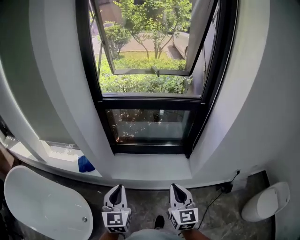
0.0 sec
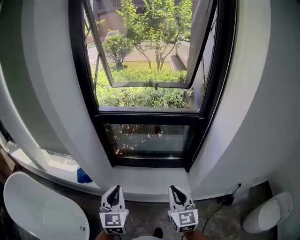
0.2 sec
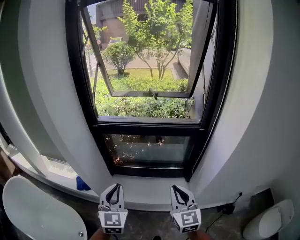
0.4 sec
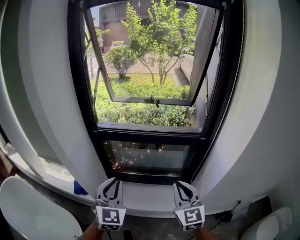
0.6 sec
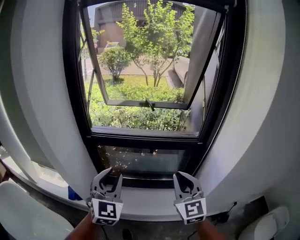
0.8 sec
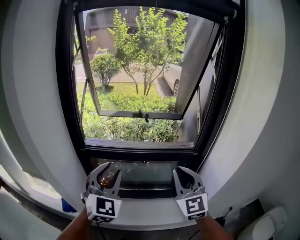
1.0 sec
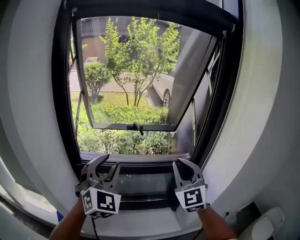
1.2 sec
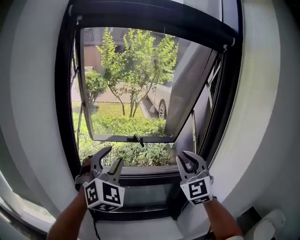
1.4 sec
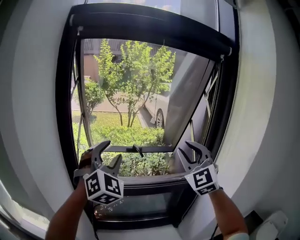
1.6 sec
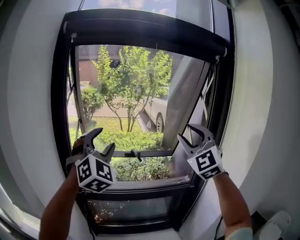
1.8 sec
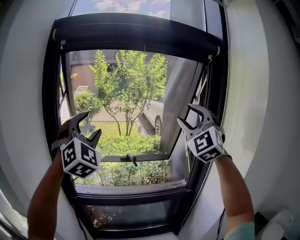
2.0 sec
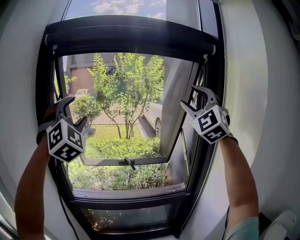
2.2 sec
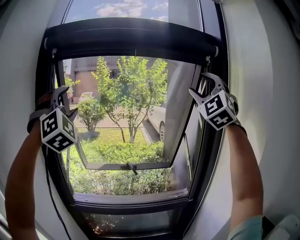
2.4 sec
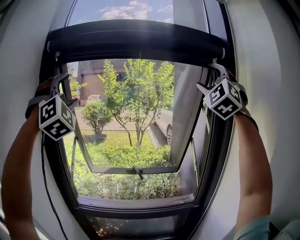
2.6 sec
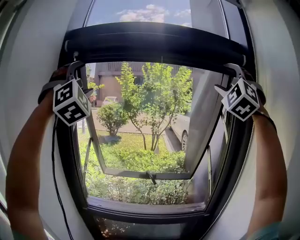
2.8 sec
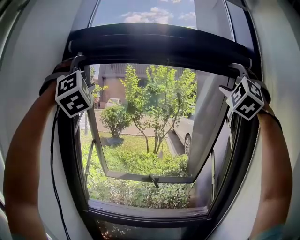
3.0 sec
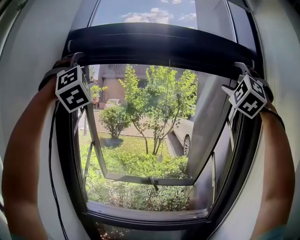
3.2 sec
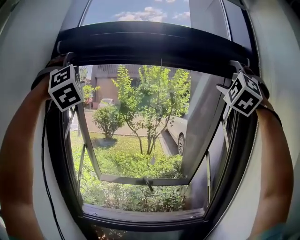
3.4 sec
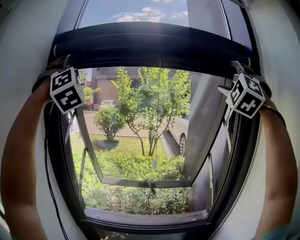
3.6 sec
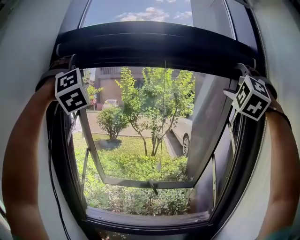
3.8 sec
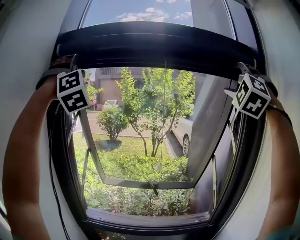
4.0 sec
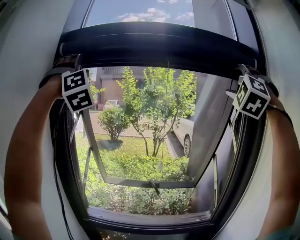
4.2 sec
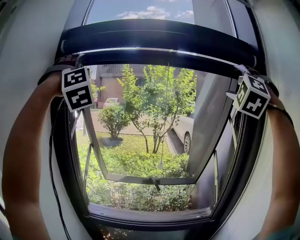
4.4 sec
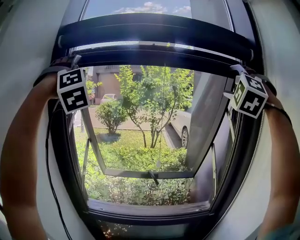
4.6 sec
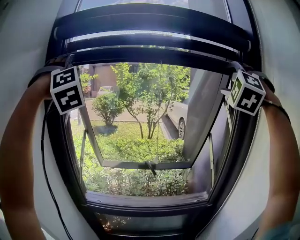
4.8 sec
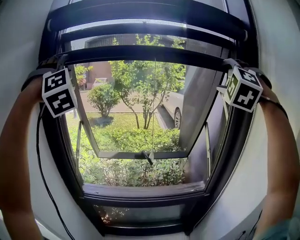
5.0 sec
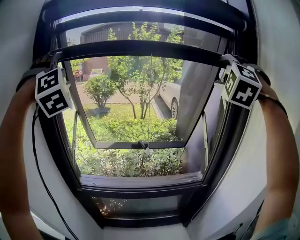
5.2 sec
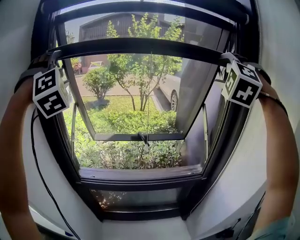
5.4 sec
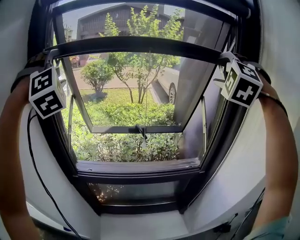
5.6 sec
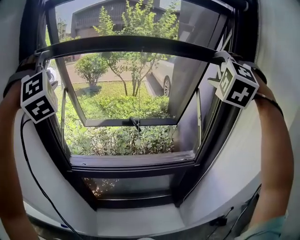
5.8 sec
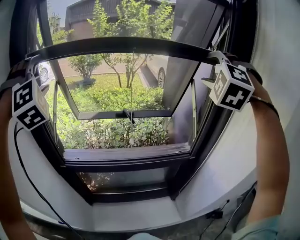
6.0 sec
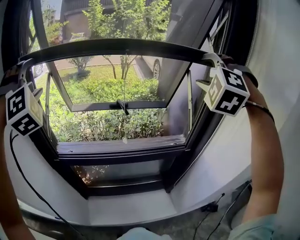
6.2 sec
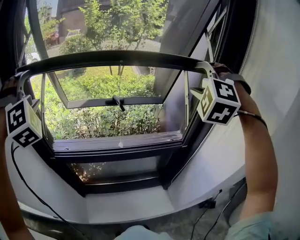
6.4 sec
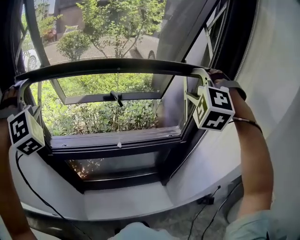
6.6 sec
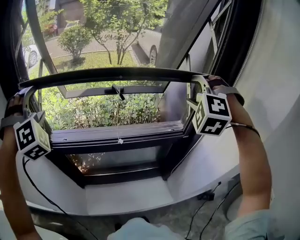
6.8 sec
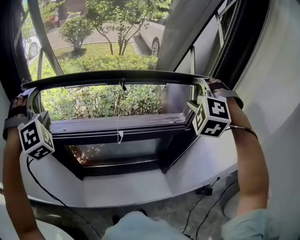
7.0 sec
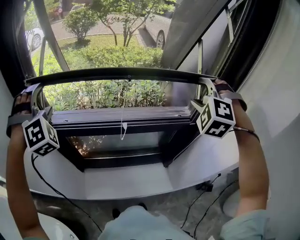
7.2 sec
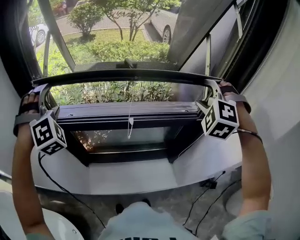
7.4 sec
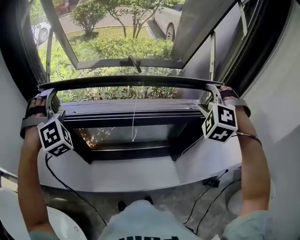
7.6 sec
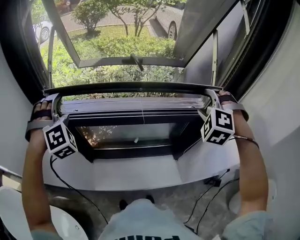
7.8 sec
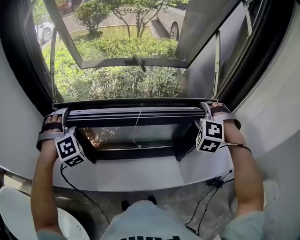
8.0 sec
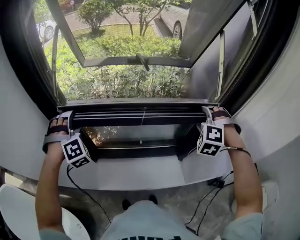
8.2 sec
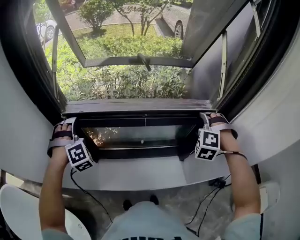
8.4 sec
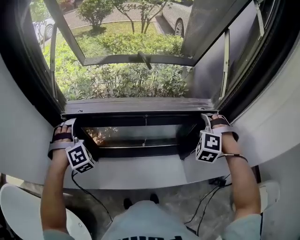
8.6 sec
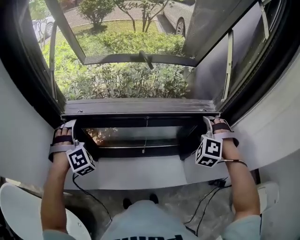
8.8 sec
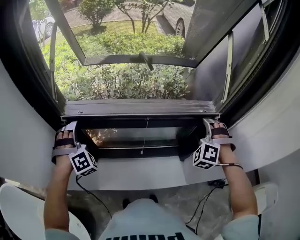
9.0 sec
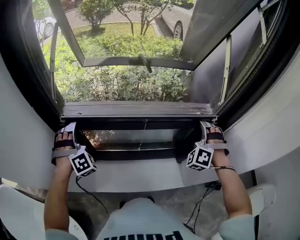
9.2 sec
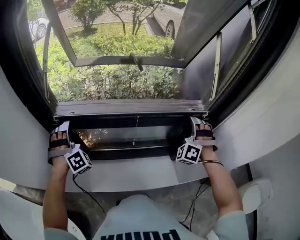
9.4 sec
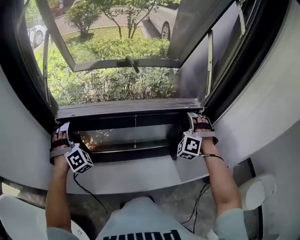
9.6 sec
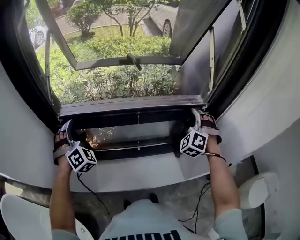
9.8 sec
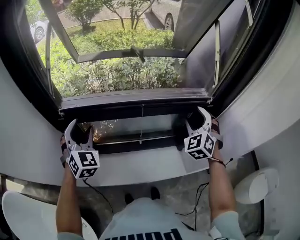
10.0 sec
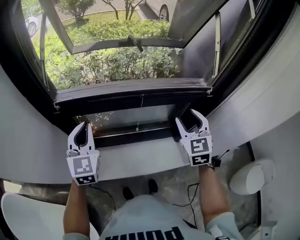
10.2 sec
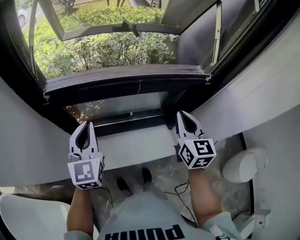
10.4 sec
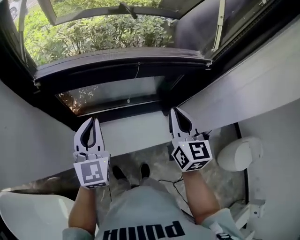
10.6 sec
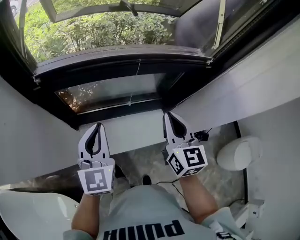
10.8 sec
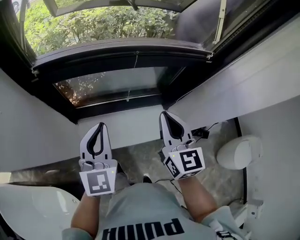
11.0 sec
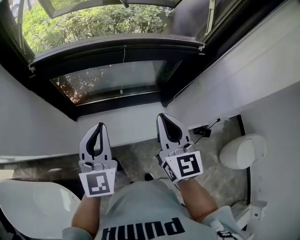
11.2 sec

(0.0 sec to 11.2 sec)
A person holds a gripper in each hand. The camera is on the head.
0.0 sec - 1.6 sec: The two grippers go some 50 cm forward and upward. The left gripper rotates around the line of its fingers by about 50 degrees, clockwise from behind, and opens its fingers. The right gripper rolls counterclockwise, seen from behind, by roughly 50 degrees.
1.6 sec - 3.2 sec: Both grippers move upward, approximately 35 cm. The right gripper swivels about 40 degrees, and opens. The left gripper turns by about 40 degrees, and opens.
3.2 sec - 4.8 sec: Both grippers travel together downward, roughly 10 cm.
4.8 sec - 6.4 sec: The two grippers go roughly 25 cm downward. The right gripper changes its angle by some 20 degrees.
6.4 sec - 8.0 sec: Both grippers travel together downward, some 30 cm. The right gripper swivels about 20 degrees; the left gripper changes its angle by approximately 20 degrees.
8.0 sec - 9.6 sec: Both grippers move downward, about 5 cm.
9.6 sec - 11.2 sec: The right gripper travels backward and to the left by approximately 25 cm, rolls clockwise, seen from behind, by approximately 80 degrees, and closes up. Meanwhile the left gripper heads backward and to the right, covering approximately 30 cm, twists some 70 degrees counterclockwise, seen from behind, and closes its fingers.

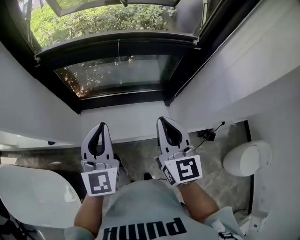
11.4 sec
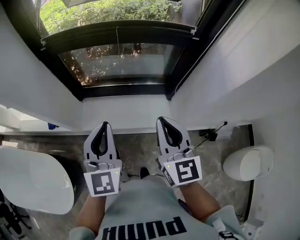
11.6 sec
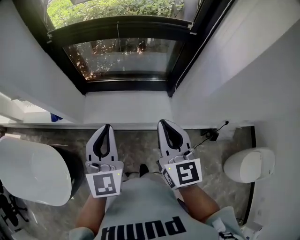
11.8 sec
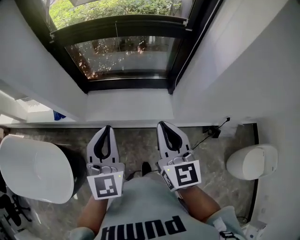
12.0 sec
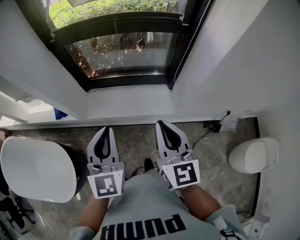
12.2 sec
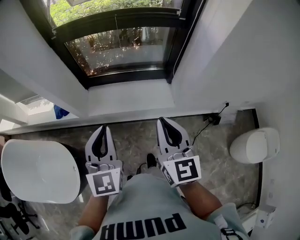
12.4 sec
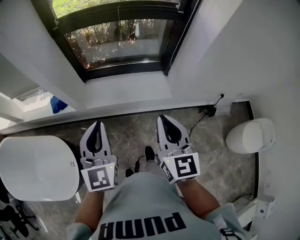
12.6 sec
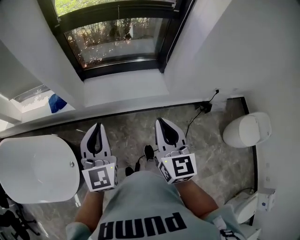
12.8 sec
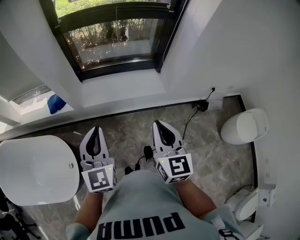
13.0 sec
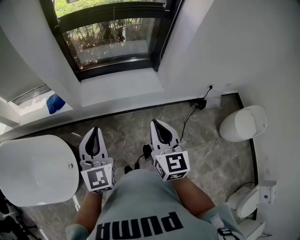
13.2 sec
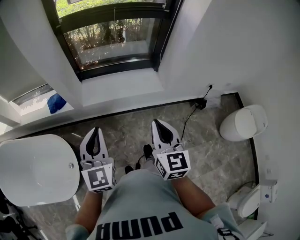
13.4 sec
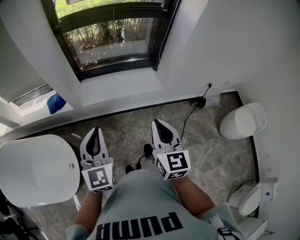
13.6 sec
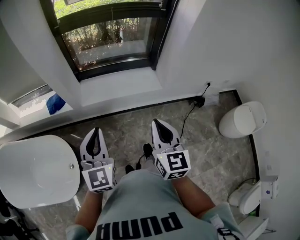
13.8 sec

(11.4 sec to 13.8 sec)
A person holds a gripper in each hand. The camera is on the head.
11.4 sec - 12.6 sec: The two grippers go about 30 cm backward.
12.6 sec - 13.8 sec: Both grippers move backward, about 15 cm.

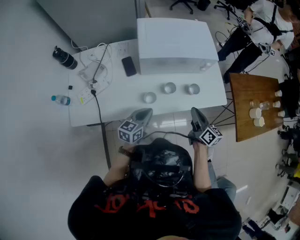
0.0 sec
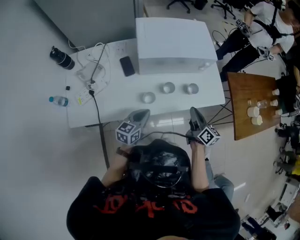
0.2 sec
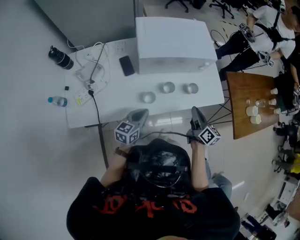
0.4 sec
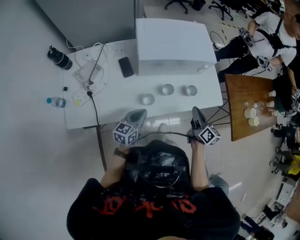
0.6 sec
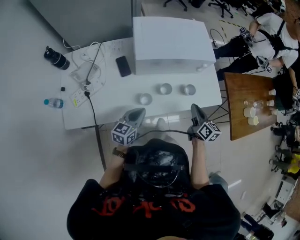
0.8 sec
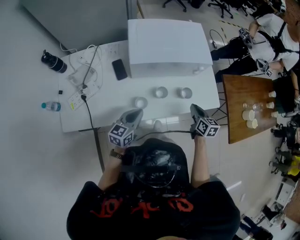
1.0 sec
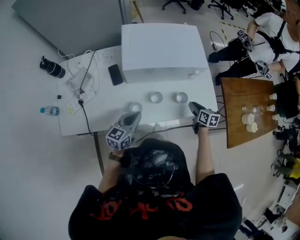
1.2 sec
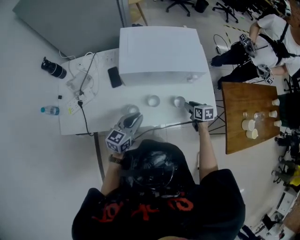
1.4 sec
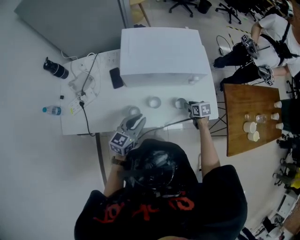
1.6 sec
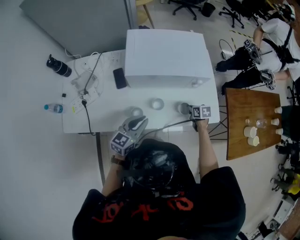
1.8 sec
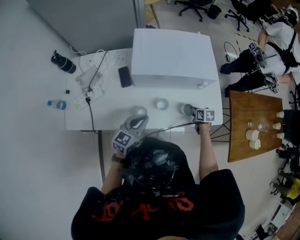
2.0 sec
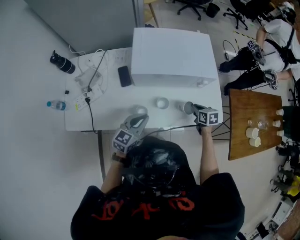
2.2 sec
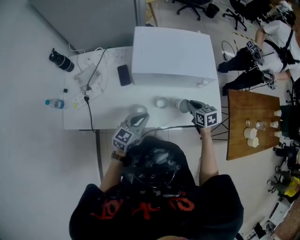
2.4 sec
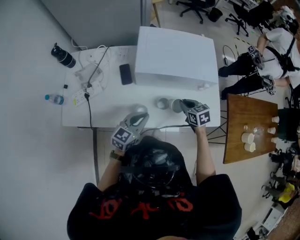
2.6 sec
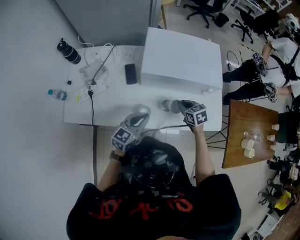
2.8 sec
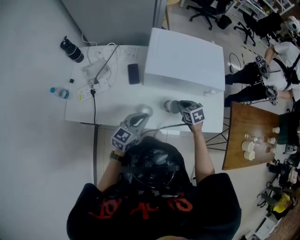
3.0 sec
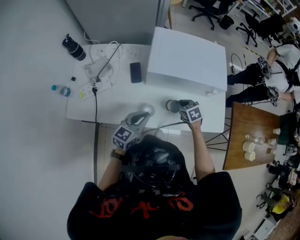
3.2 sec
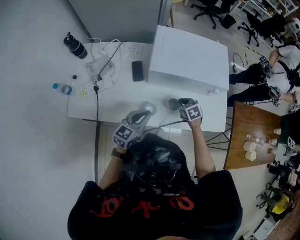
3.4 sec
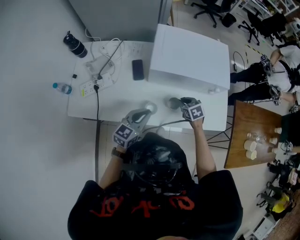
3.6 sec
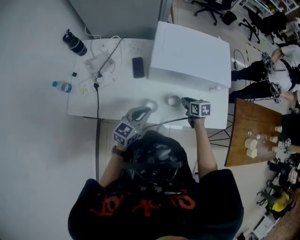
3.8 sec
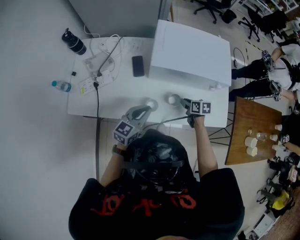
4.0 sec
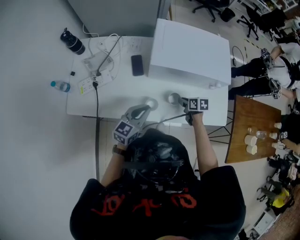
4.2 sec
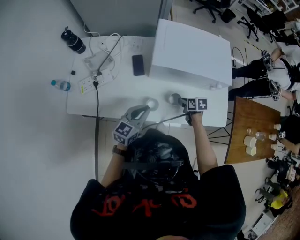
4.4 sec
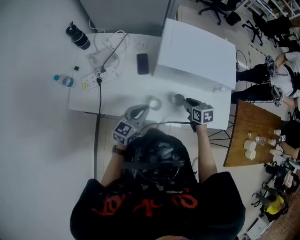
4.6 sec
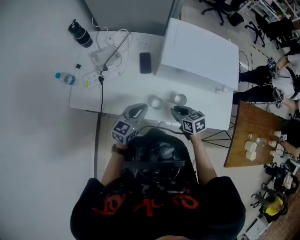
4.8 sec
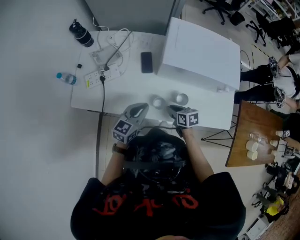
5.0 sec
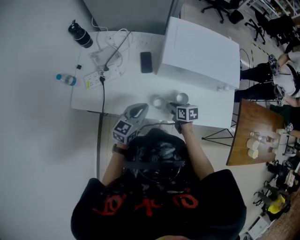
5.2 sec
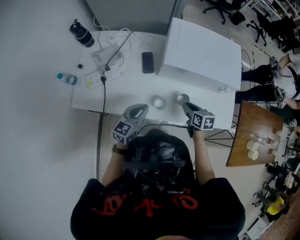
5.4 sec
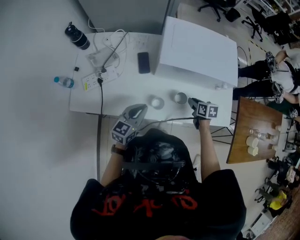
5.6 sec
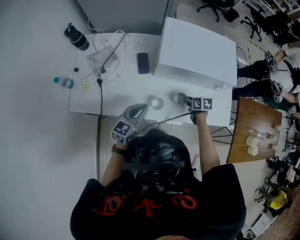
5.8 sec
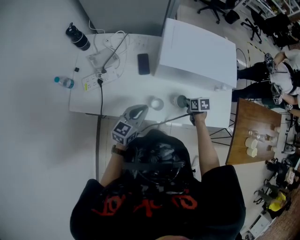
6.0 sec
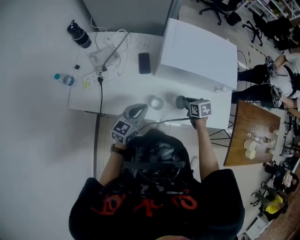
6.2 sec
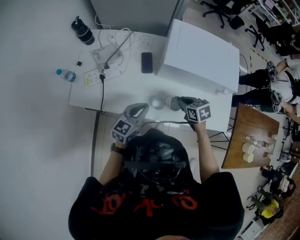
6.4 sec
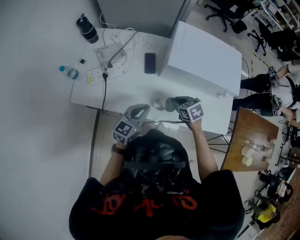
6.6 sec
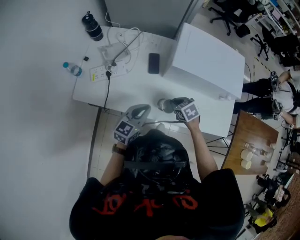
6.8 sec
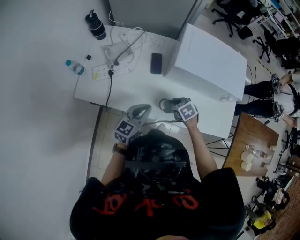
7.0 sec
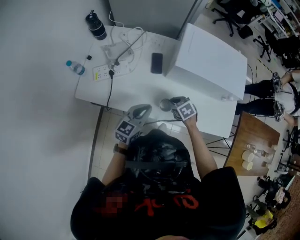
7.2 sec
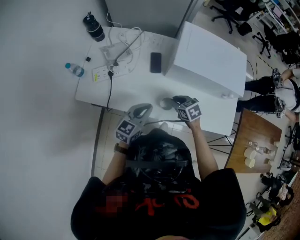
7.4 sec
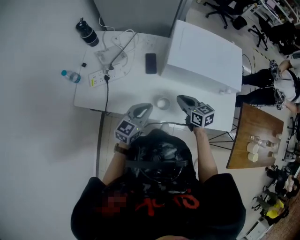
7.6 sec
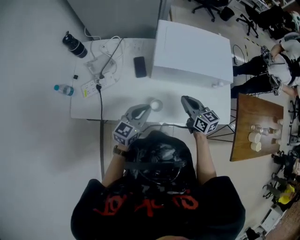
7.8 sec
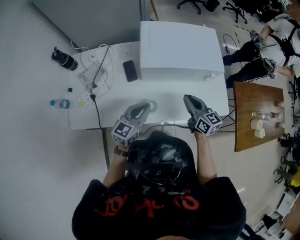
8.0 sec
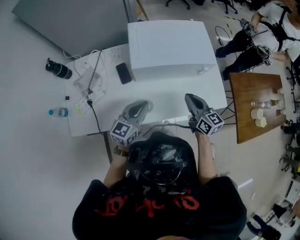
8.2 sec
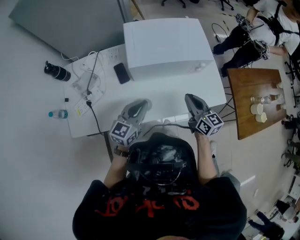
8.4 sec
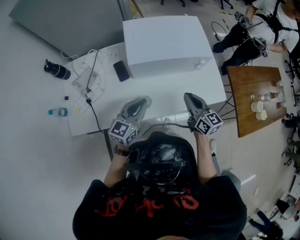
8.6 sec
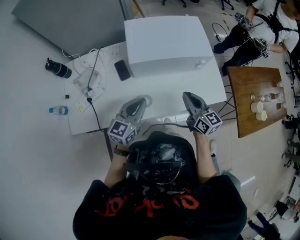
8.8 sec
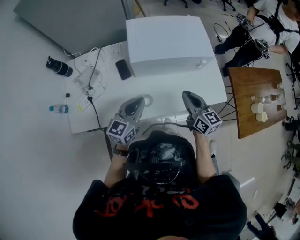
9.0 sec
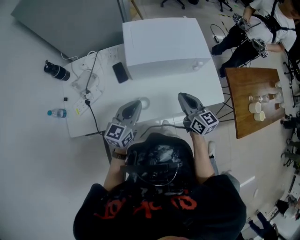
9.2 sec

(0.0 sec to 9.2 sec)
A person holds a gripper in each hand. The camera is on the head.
0.0 sec - 1.6 sec: The right gripper shifts about 25 cm downward, forward and to the right, angles its fingers downward, by approximately 50 degrees, and opens its fingers, while the left gripper heads forward, covering some 5 cm.
1.6 sec - 3.0 sec: The left gripper is displaced to the left by some 5 cm, while the right gripper heads to the left and upward, covering roughly 20 cm, turns by some 20 degrees, and closes.
4.6 sec - 6.2 sec: The right gripper swings left and right, about 15 cm each way, with 2 reversals.
6.2 sec - 7.6 sec: The right gripper goes some 10 cm to the left and upward, and turns by about 30 degrees.
7.6 sec - 9.2 sec: The right gripper heads to the right and upward, covering about 15 cm, and swivels roughly 30 degrees. Meanwhile the left gripper travels upward and to the right by roughly 5 cm.
